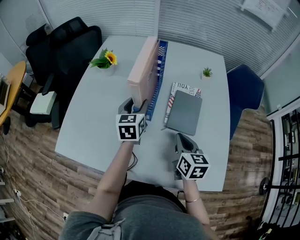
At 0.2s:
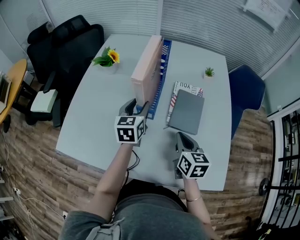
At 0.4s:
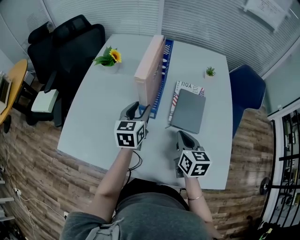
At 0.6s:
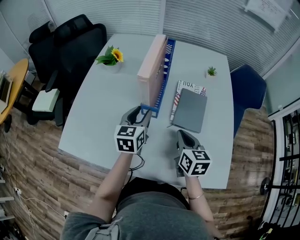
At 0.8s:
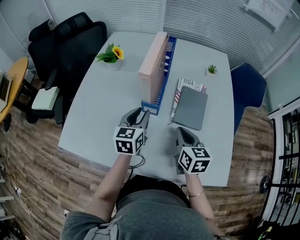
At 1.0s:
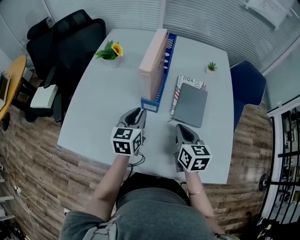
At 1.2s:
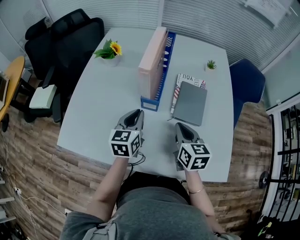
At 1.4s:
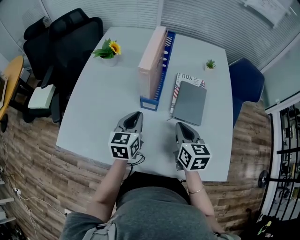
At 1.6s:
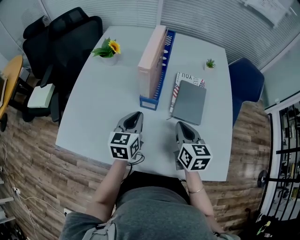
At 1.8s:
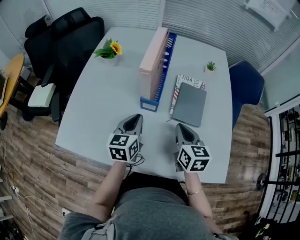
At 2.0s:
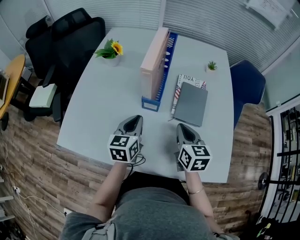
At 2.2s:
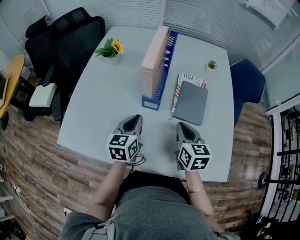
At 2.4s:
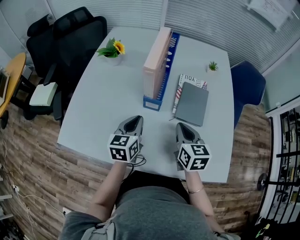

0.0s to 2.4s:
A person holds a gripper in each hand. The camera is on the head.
0.0s to 1.2s: The left gripper moves backward, approximately 10 cm, and closes up.
1.2s to 2.4s: The grippers move only a little.

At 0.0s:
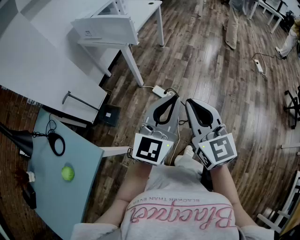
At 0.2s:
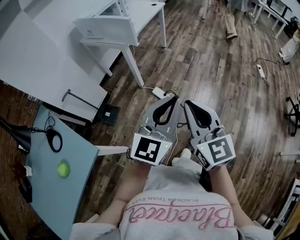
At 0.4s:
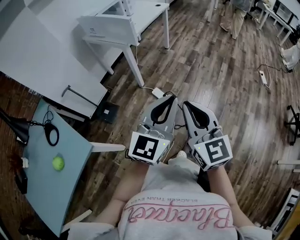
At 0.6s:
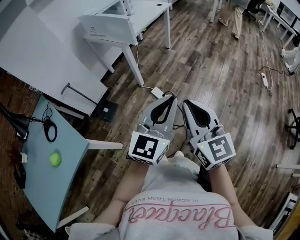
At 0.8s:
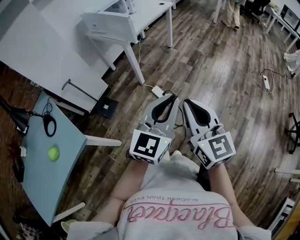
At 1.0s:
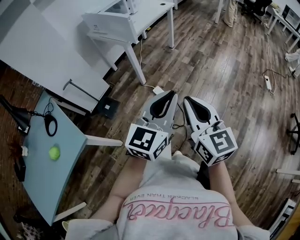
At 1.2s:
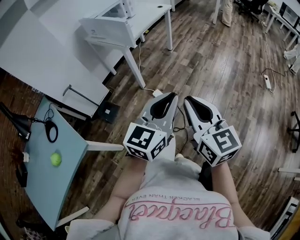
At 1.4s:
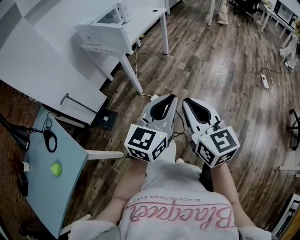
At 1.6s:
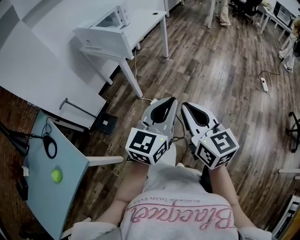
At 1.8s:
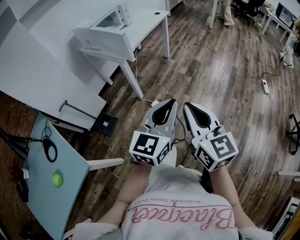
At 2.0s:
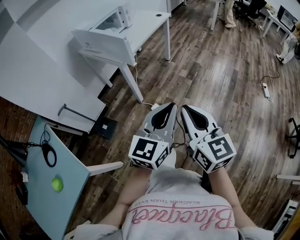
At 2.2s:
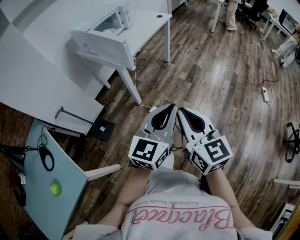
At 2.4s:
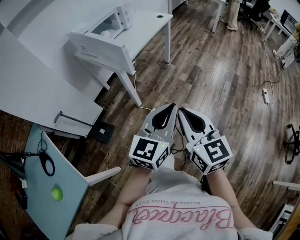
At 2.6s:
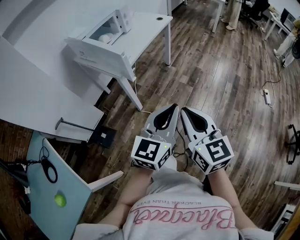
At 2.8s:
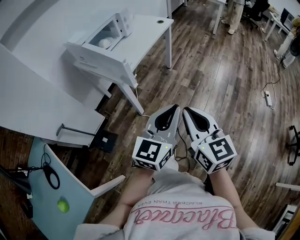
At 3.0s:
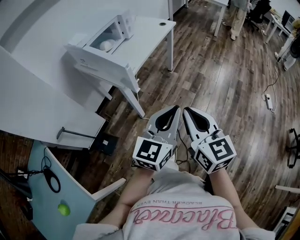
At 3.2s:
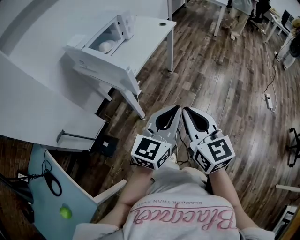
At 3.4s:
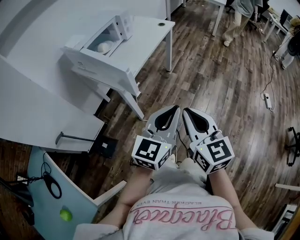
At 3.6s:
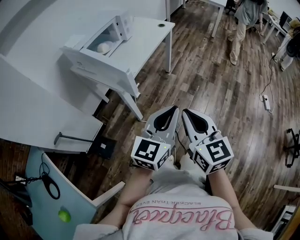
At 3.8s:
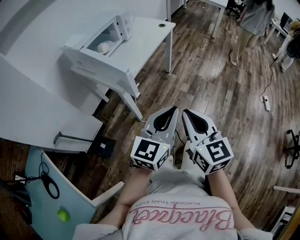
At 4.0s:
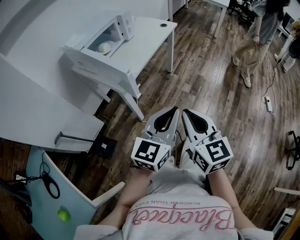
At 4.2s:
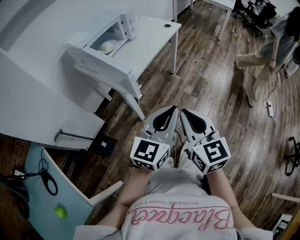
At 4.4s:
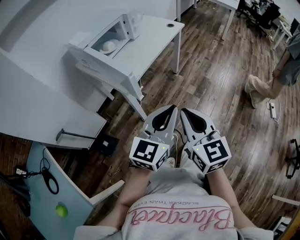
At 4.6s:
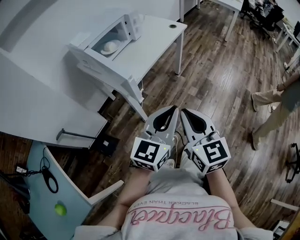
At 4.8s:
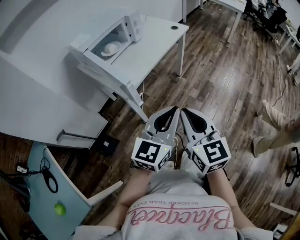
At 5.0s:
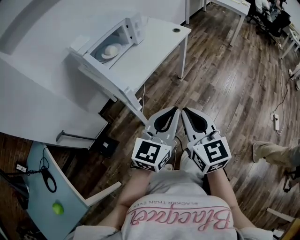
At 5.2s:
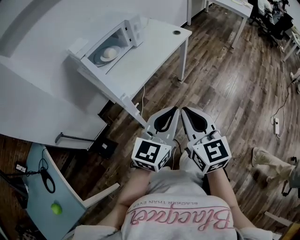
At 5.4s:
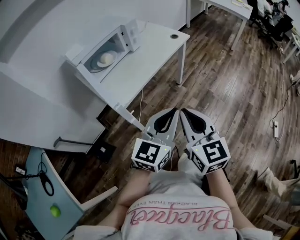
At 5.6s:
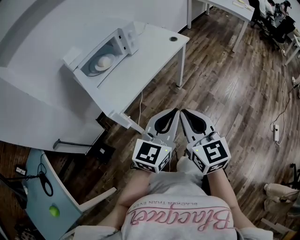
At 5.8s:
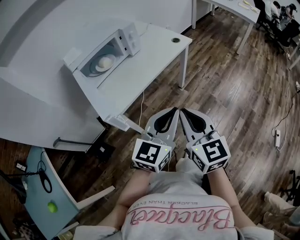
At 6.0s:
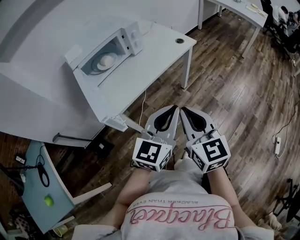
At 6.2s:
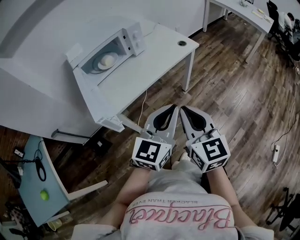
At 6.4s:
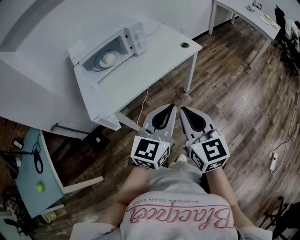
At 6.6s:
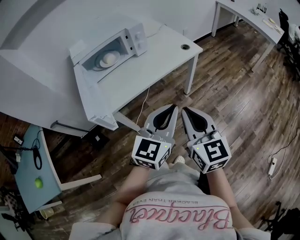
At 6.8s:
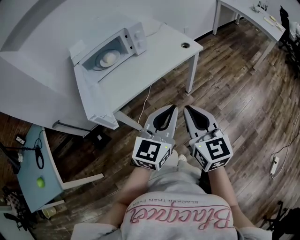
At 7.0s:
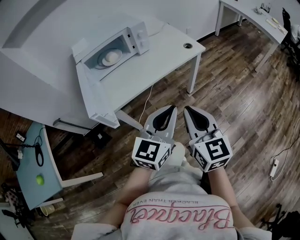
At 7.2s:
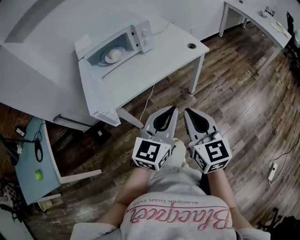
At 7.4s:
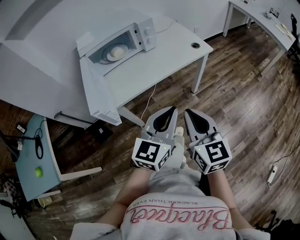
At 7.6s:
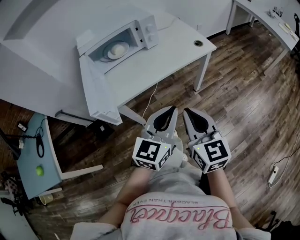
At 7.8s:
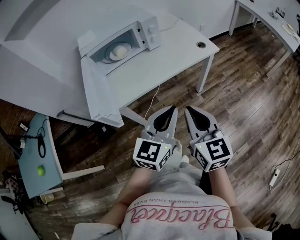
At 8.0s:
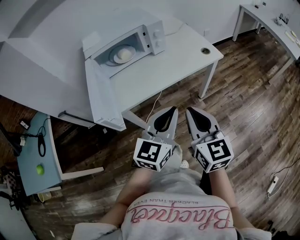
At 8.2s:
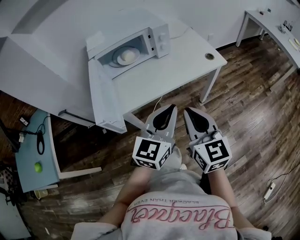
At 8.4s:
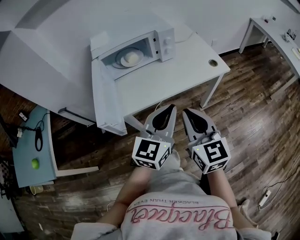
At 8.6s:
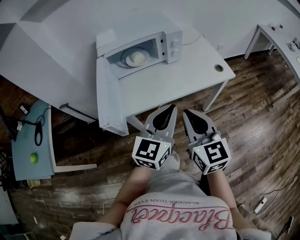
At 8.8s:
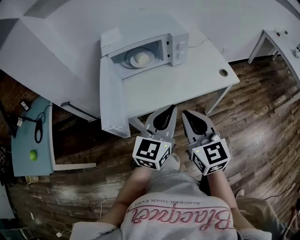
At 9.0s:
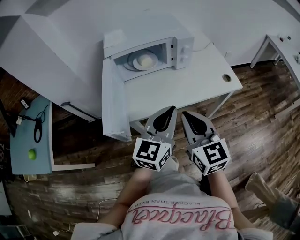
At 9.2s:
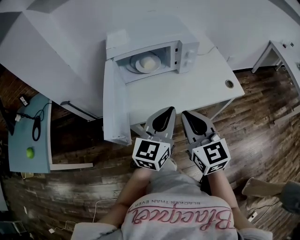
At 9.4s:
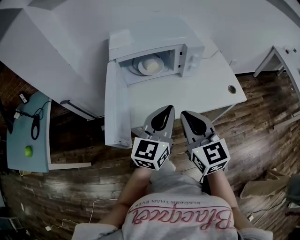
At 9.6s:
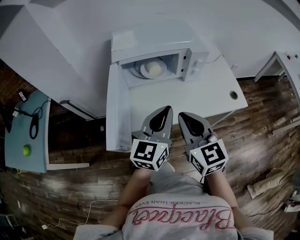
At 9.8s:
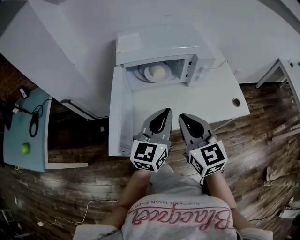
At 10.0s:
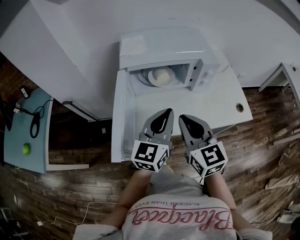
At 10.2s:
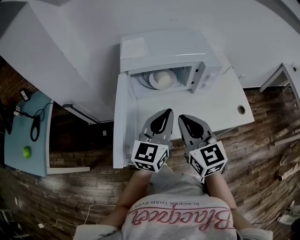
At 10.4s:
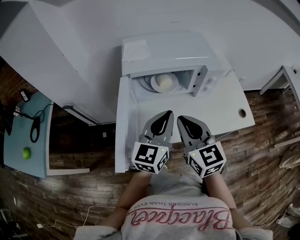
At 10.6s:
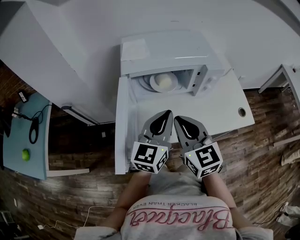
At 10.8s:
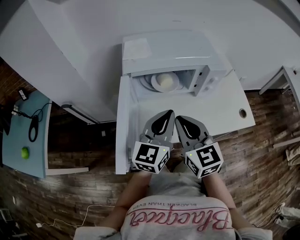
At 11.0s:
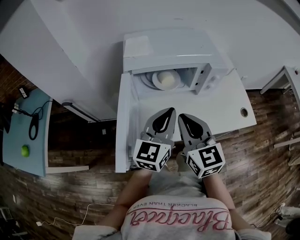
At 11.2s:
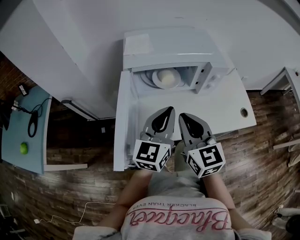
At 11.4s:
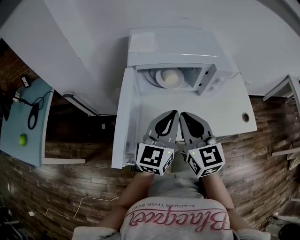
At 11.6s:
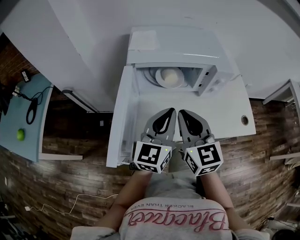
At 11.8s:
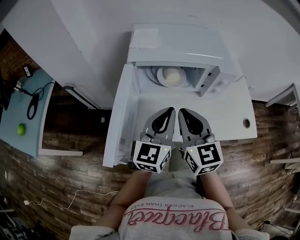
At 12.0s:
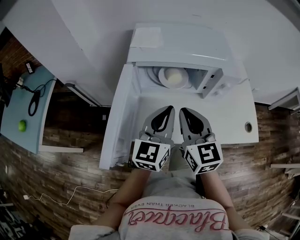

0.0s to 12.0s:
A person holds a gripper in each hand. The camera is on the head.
0.0s to 1.6s: The right gripper heads to the right and forward, covering about 15 cm. The left gripper goes approximately 15 cm forward and to the right.
1.6s to 3.0s: The two grippers go about 25 cm forward.
3.0s to 4.4s: Both grippers move forward, roughly 5 cm.
4.4s to 6.0s: Both grippers travel together forward and to the right, approximately 25 cm.
6.0s to 7.6s: The grippers both shift forward by approximately 5 cm.
7.6s to 9.0s: The grippers both shift forward and to the left by about 15 cm.
9.0s to 10.4s: Both grippers travel together forward and to the left, some 15 cm.
10.4s to 12.0s: The right gripper moves forward, about 5 cm.

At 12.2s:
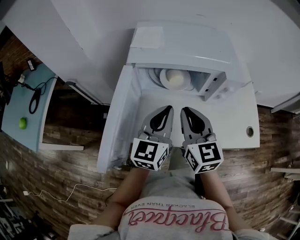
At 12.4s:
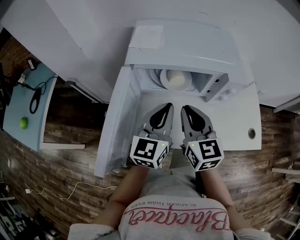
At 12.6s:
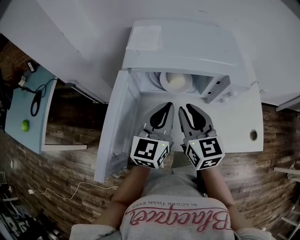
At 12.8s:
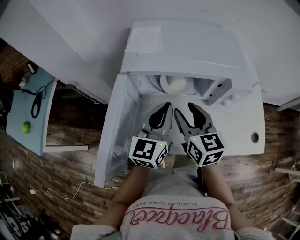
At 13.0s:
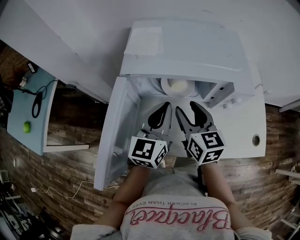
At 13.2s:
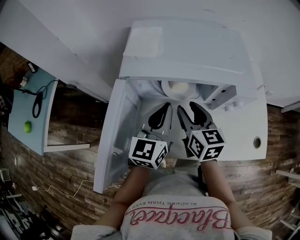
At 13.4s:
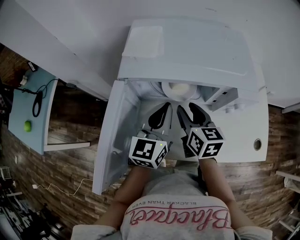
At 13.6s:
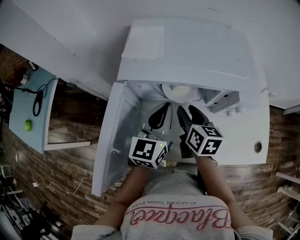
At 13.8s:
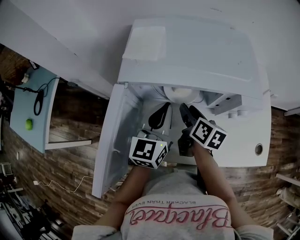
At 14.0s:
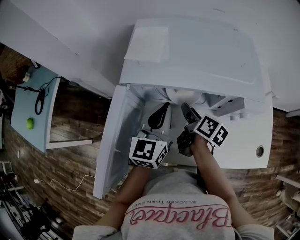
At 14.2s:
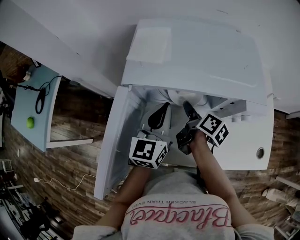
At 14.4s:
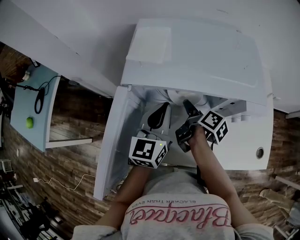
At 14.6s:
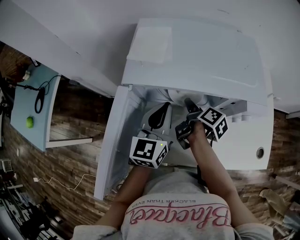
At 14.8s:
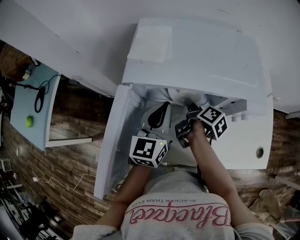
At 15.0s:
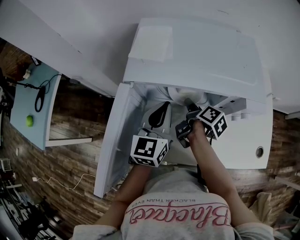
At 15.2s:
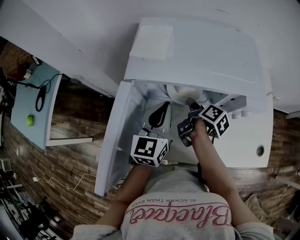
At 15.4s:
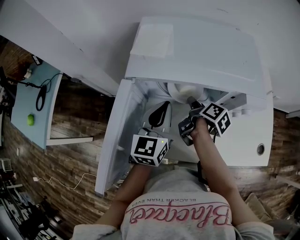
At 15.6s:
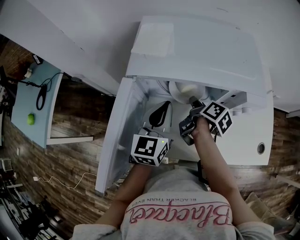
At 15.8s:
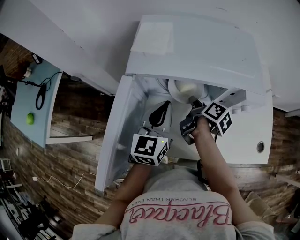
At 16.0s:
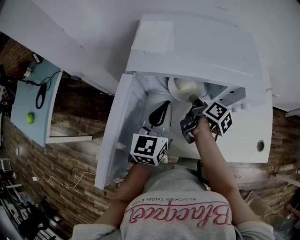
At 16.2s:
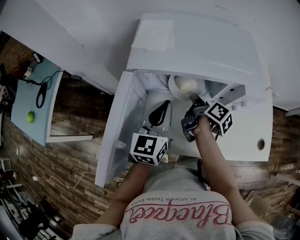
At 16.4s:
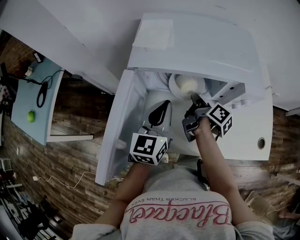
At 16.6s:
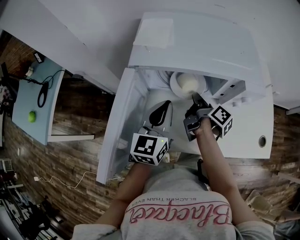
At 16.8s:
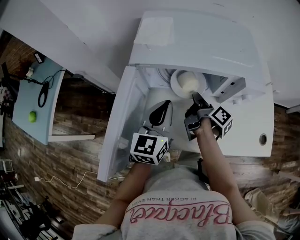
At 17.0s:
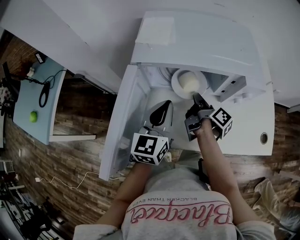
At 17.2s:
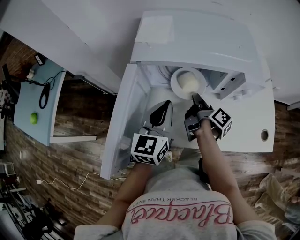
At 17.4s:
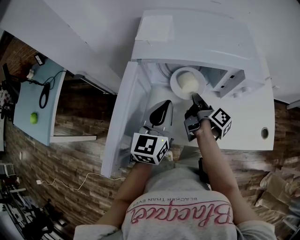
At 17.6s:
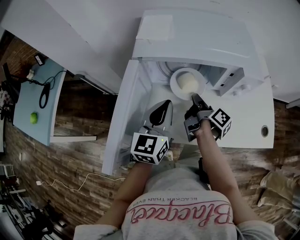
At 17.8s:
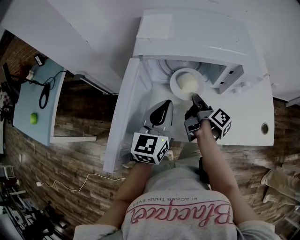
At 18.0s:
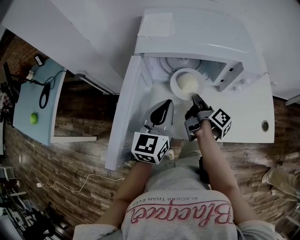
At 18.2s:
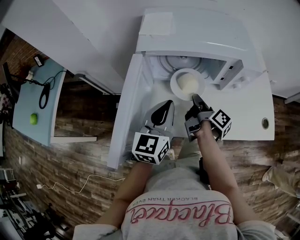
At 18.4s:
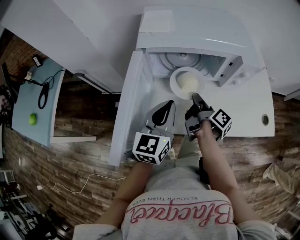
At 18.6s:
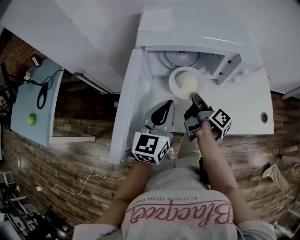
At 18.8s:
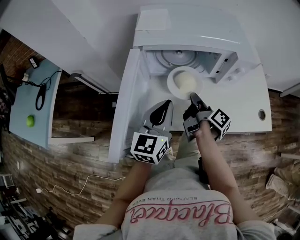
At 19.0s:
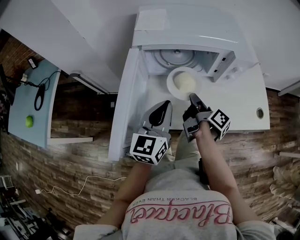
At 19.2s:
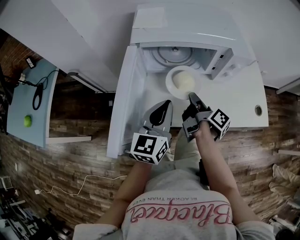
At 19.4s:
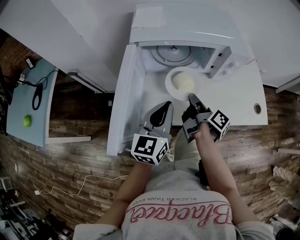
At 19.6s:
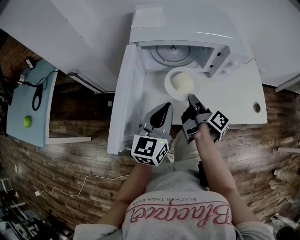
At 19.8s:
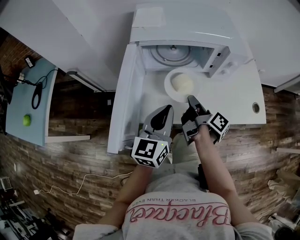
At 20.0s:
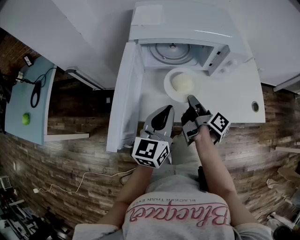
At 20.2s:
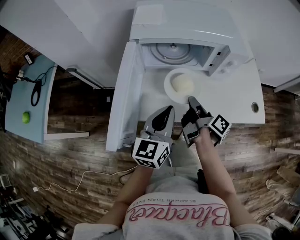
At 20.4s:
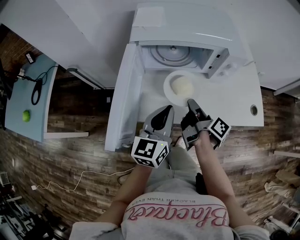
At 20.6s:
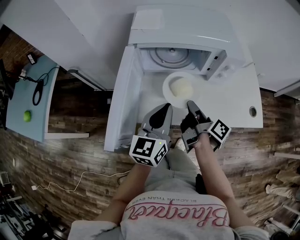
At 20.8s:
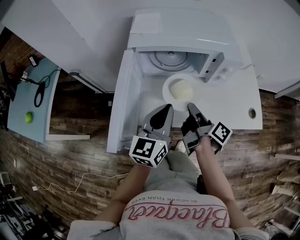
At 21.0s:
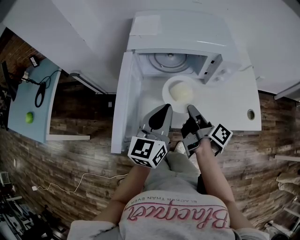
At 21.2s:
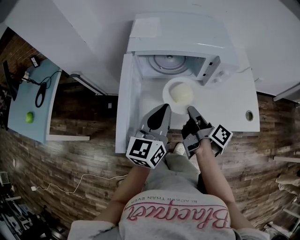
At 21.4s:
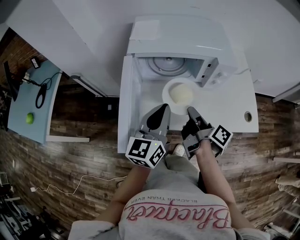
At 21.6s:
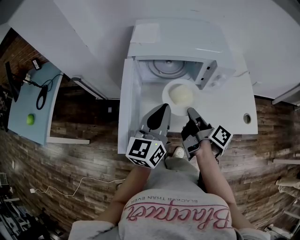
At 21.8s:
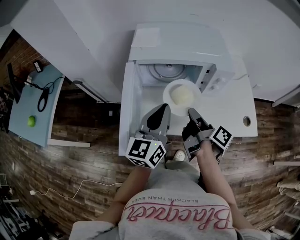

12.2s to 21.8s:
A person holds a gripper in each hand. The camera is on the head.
12.2s to 13.8s: The left gripper moves forward, about 10 cm. The right gripper goes some 20 cm downward and forward, rolls clockwise, seen from behind, by about 50 degrees, and opens its fingers.
13.8s to 15.4s: The right gripper swivels approximately 30 degrees.
15.4s to 17.0s: The right gripper rotates approximately 20 degrees, and closes. Meanwhile the left gripper travels backward by roughly 5 cm.
17.0s to 18.6s: The grippers both shift backward by approximately 10 cm.
18.6s to 20.2s: The two grippers go some 5 cm backward.
20.2s to 21.8s: The two grippers go roughly 10 cm upward.
